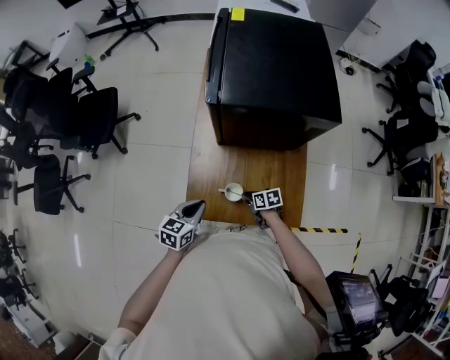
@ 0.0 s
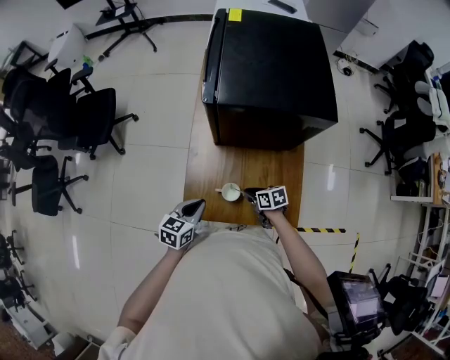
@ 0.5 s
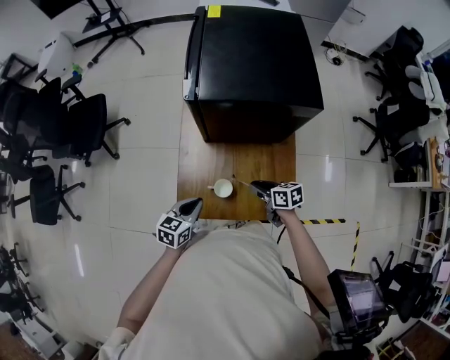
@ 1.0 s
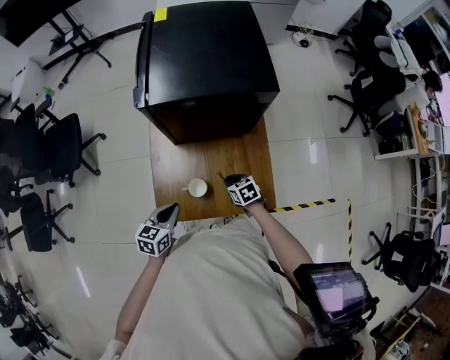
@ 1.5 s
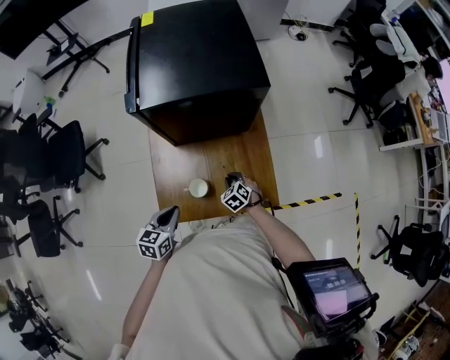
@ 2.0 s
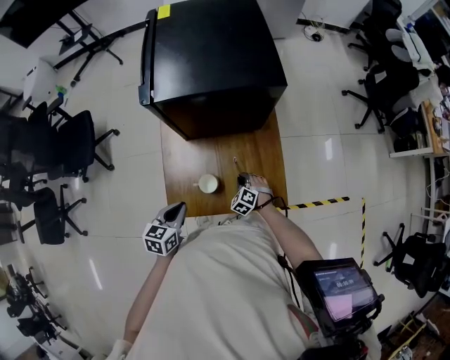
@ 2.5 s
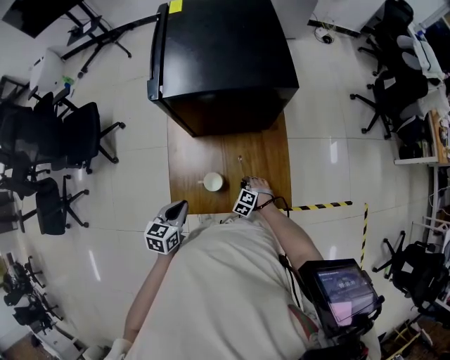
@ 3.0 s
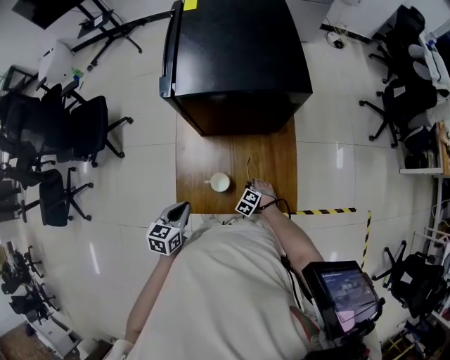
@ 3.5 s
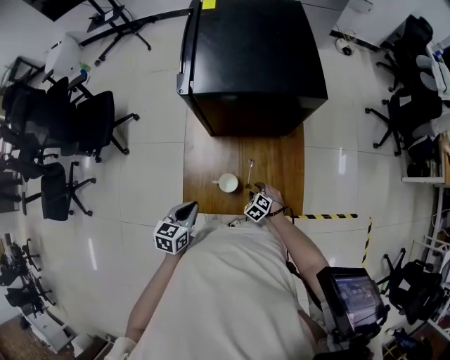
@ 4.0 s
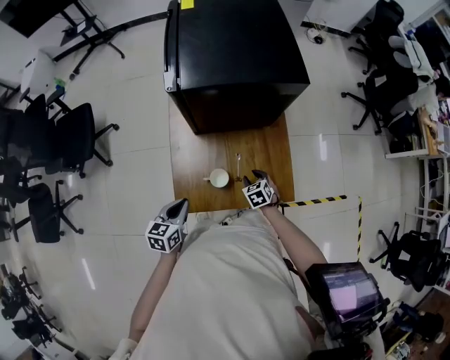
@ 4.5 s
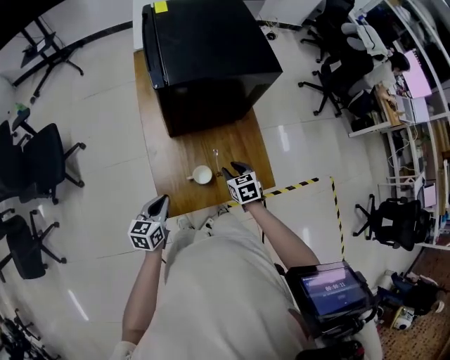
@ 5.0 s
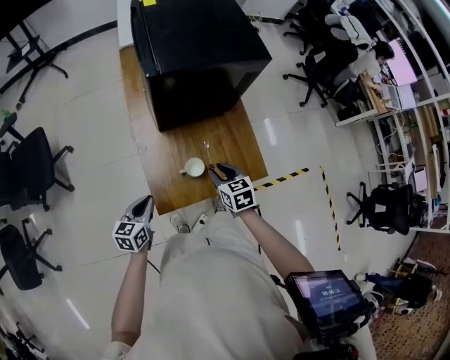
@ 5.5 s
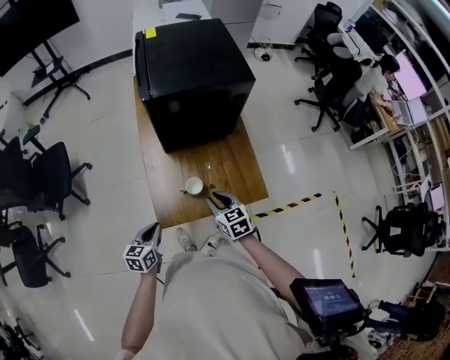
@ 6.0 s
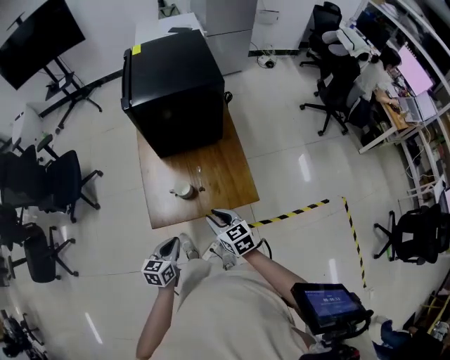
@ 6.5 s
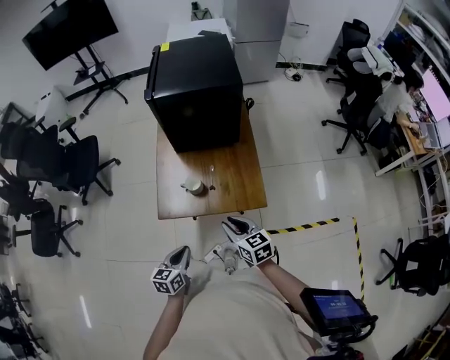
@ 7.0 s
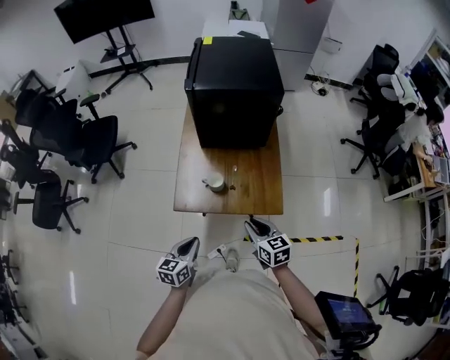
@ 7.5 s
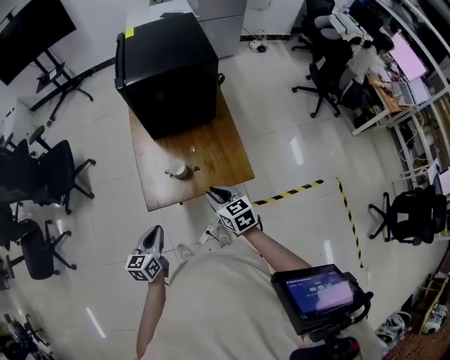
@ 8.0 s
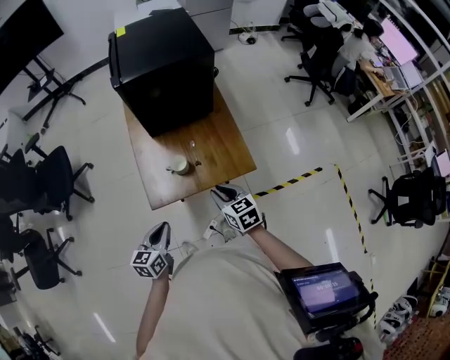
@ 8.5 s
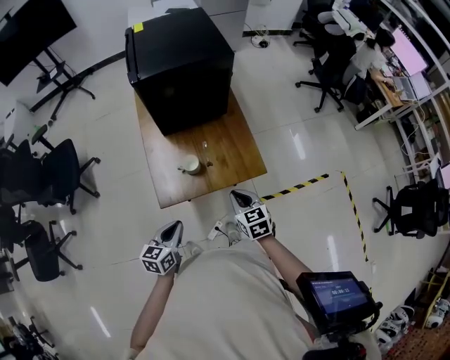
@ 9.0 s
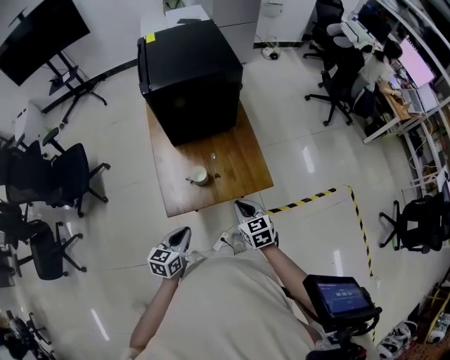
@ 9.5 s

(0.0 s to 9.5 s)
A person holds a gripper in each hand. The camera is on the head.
0.0 s - 2.0 s: The right gripper reaches some 15 cm upward, then returns, and changes its angle by some 50 degrees.
2.0 s - 4.0 s: The right gripper heads downward and backward, covering some 10 cm, and opens up.
4.0 s - 5.5 s: The right gripper shifts about 25 cm upward, and twists about 50 degrees clockwise, seen from behind. Meanwhile the left gripper shifts roughly 10 cm to the left.
5.5 s - 7.5 s: The grippers both shift backward and to the right by approximately 25 cm. The right gripper changes its angle by some 20 degrees.

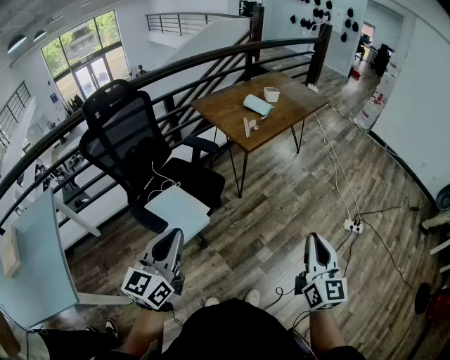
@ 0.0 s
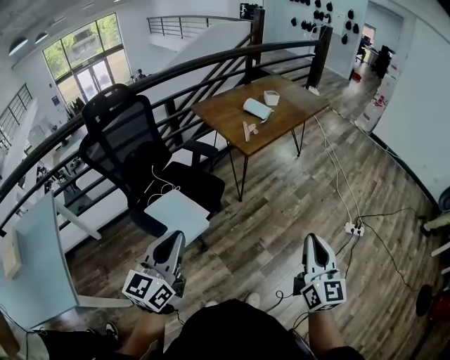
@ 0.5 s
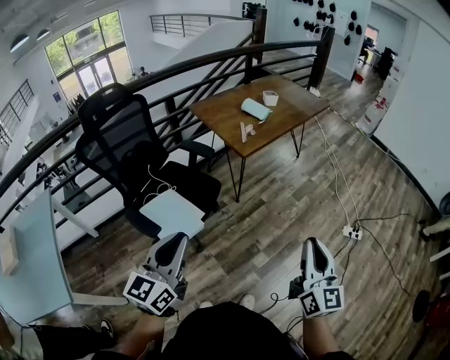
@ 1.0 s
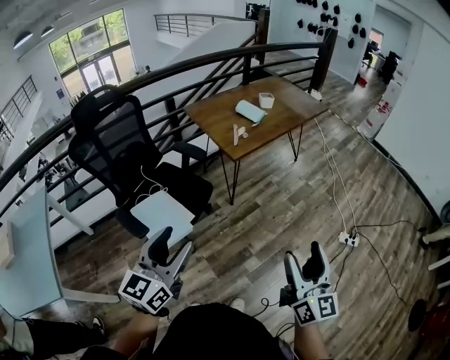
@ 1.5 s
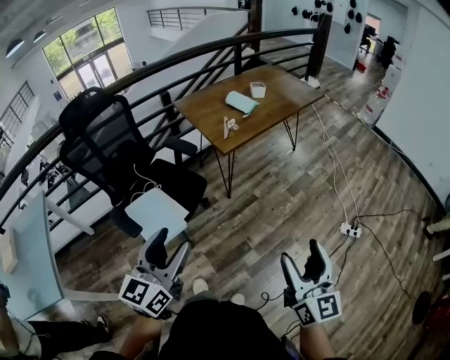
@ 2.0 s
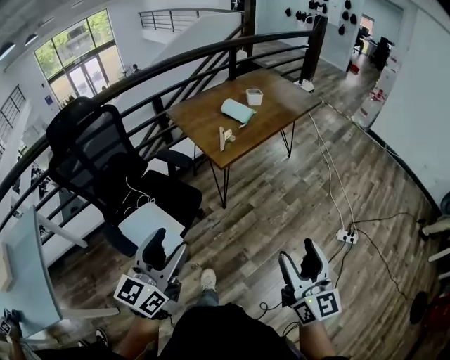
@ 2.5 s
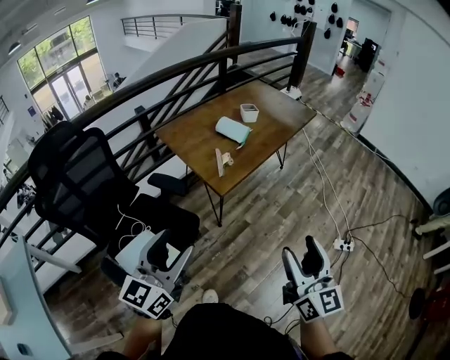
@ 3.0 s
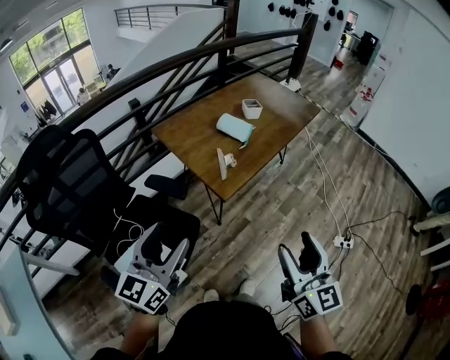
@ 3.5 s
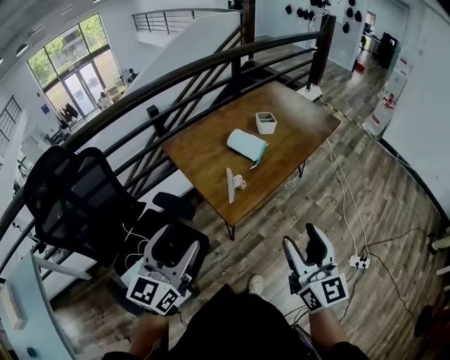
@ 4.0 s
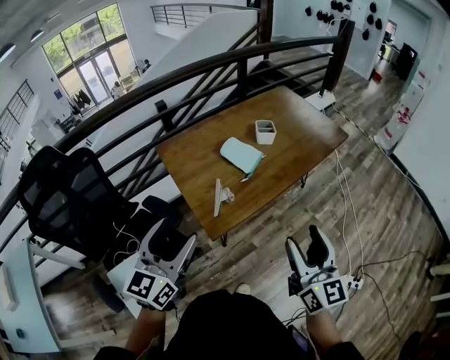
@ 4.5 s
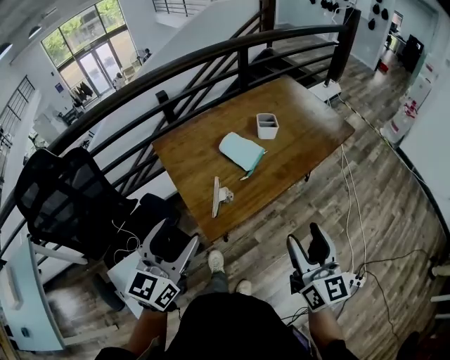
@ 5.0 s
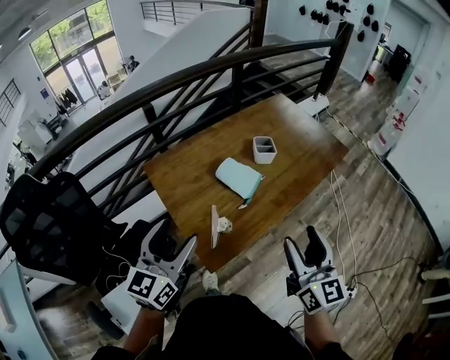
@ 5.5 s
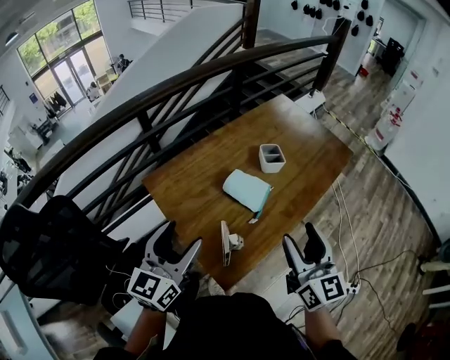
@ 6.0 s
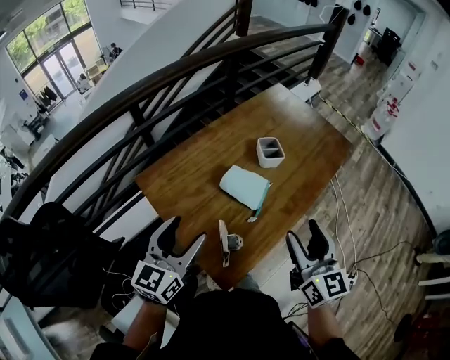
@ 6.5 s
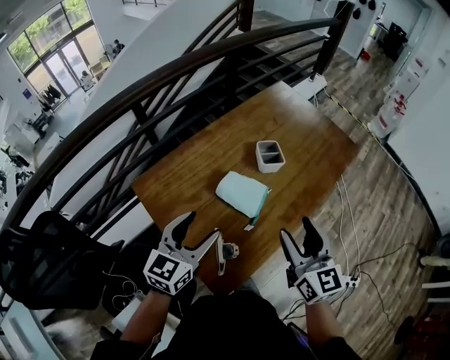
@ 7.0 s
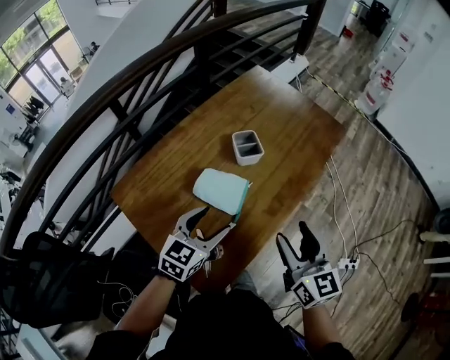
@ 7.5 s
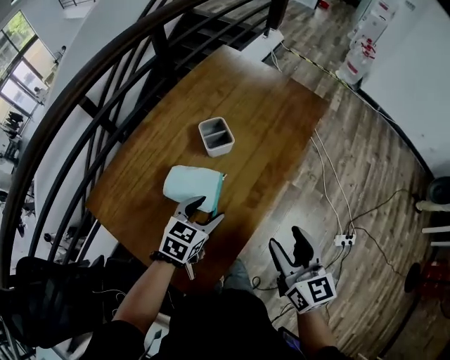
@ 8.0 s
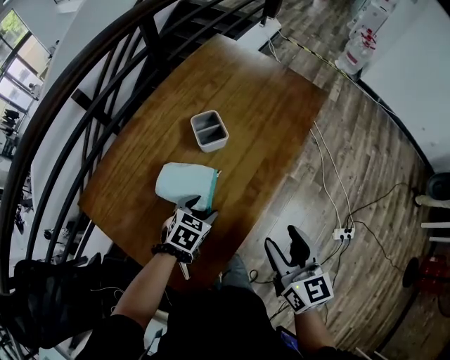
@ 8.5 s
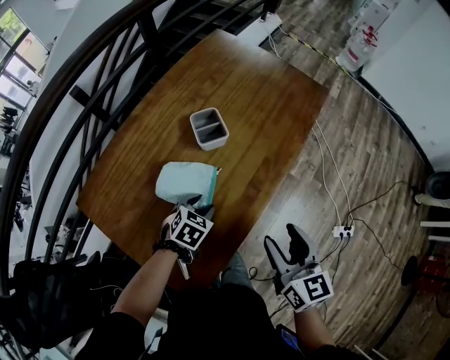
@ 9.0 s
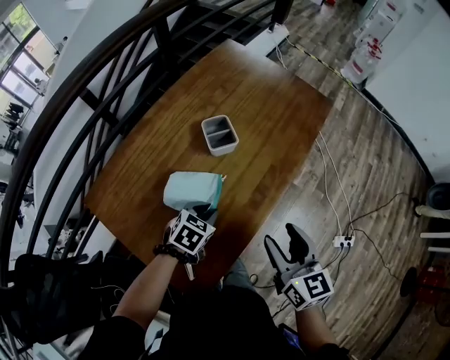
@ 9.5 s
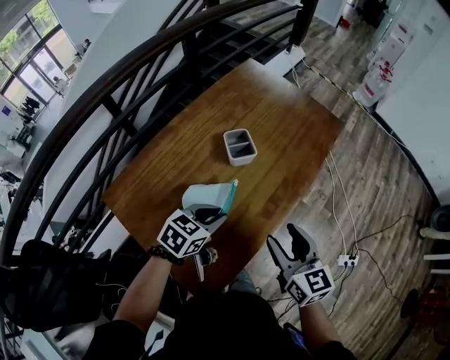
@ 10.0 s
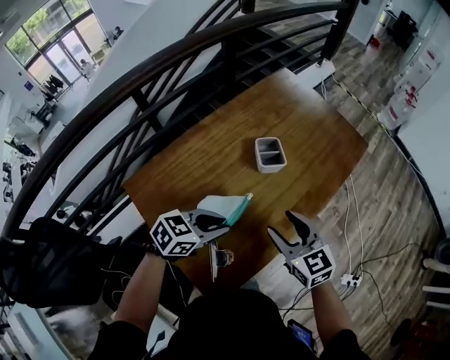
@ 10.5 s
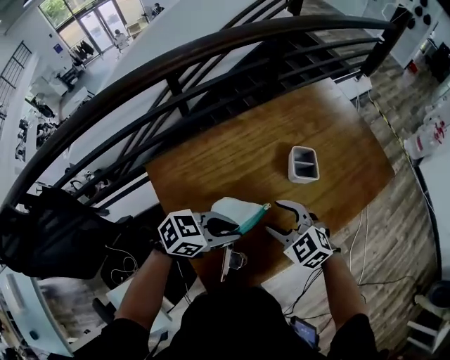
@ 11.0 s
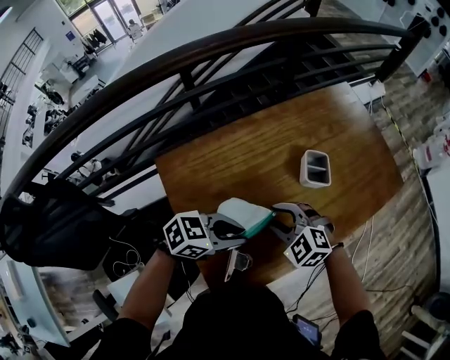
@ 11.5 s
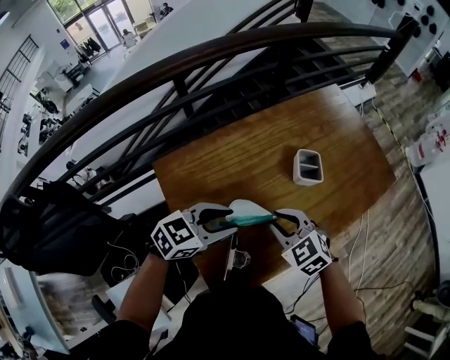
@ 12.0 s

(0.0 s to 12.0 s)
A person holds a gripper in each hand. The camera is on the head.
0.0 s - 2.0 s: The right gripper heads to the right, covering some 10 cm, and opens. The left gripper shifts some 15 cm to the right and forward, and opens.
2.0 s - 4.0 s: Both grippers move forward, about 35 cm.
4.0 s - 6.0 s: The grippers both shift forward by about 25 cm.
6.0 s - 8.0 s: The left gripper goes roughly 35 cm downward, to the right and forward, and tips its fingers downward by some 30 degrees, while the right gripper moves downward, to the right and forward, approximately 15 cm, and changes its angle by roughly 20 degrees.
8.0 s - 10.0 s: The right gripper moves to the left, roughly 5 cm, while the left gripper travels downward and back again, roughly 10 cm each way, and closes up.
10.0 s - 12.0 s: The left gripper shifts by some 15 cm. The right gripper moves approximately 20 cm, rotates approximately 60 degrees, and closes.

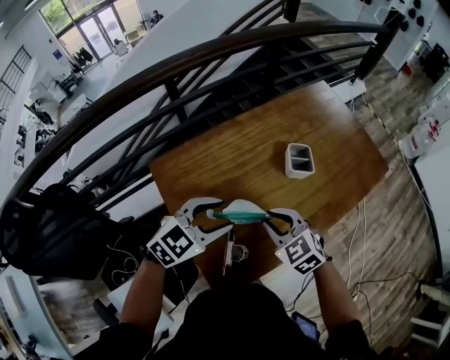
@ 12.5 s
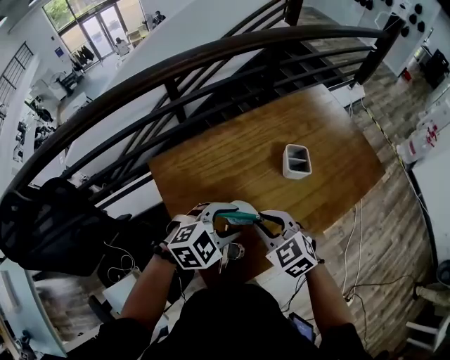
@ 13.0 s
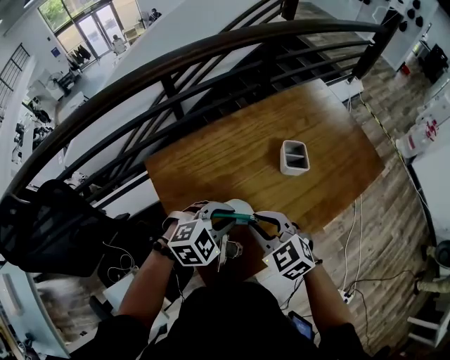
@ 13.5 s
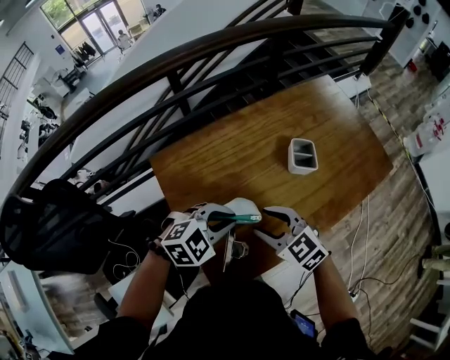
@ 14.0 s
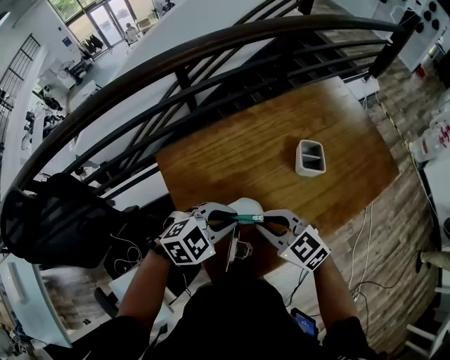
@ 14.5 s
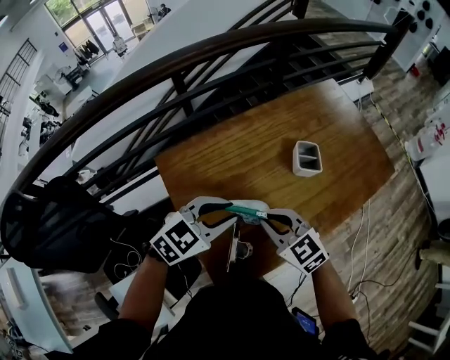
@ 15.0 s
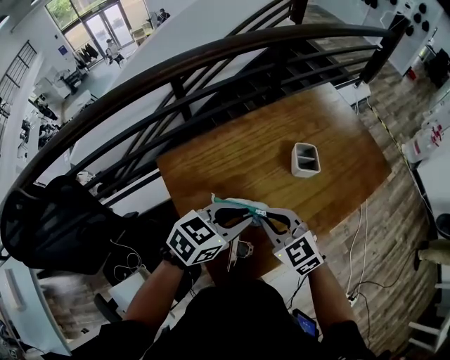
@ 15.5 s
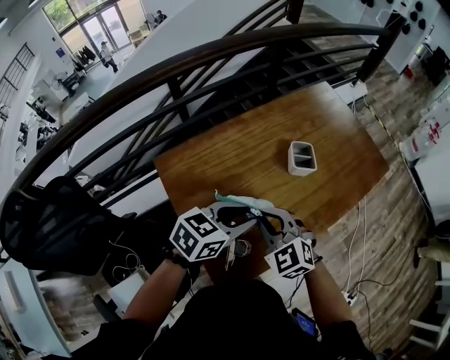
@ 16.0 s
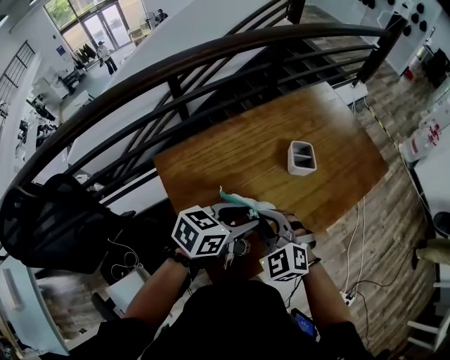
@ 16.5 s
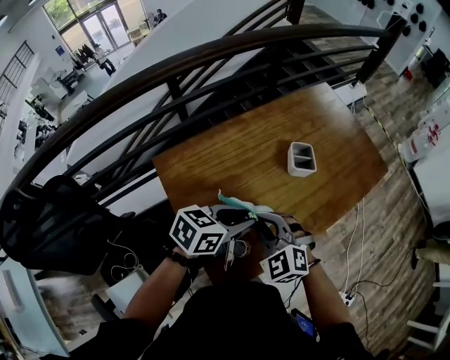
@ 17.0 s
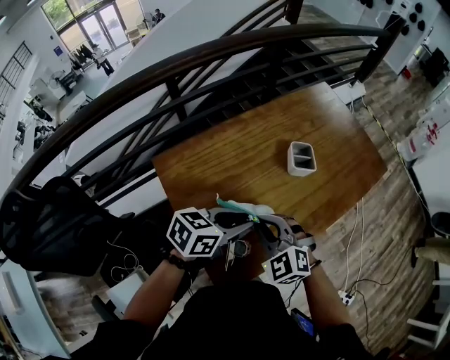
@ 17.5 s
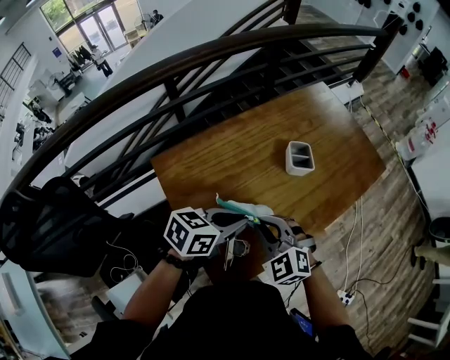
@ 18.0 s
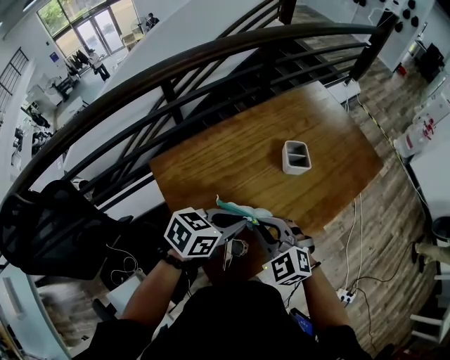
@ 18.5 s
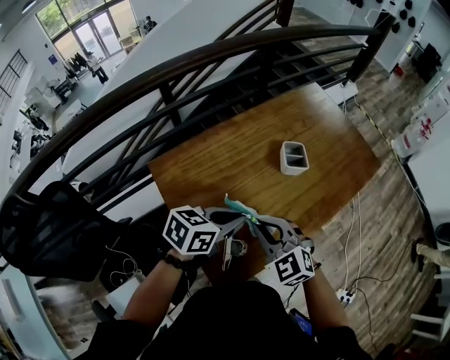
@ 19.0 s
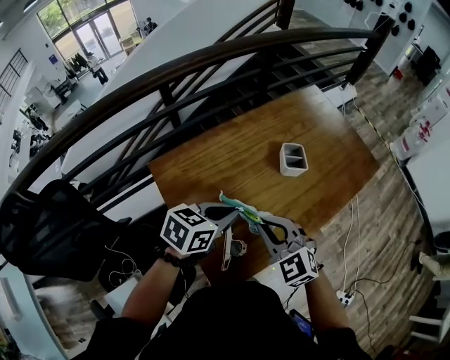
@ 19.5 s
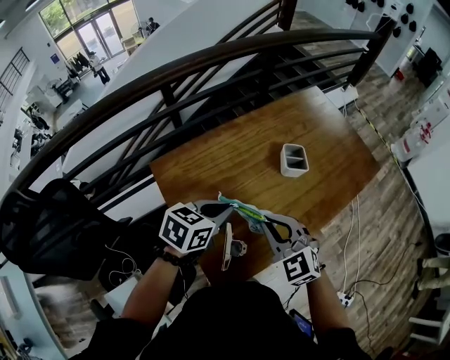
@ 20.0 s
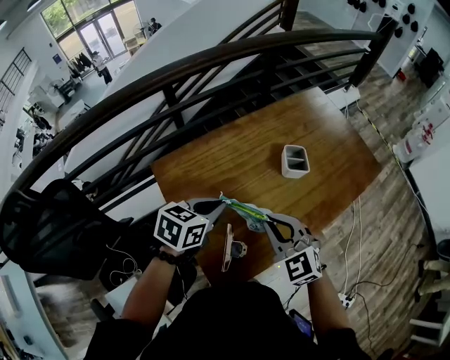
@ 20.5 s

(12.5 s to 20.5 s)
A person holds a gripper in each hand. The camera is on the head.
12.5 s - 14.5 s: The right gripper rotates some 20 degrees, and opens, then closes once more, while the left gripper closes.
14.5 s - 16.5 s: The left gripper moves about 5 cm, twists roughly 40 degrees counterclockwise, seen from behind, and opens its fingers. The right gripper turns by about 30 degrees.
16.5 s - 18.5 s: The left gripper closes its fingers.
18.5 s - 20.5 s: The left gripper goes some 5 cm to the left.
